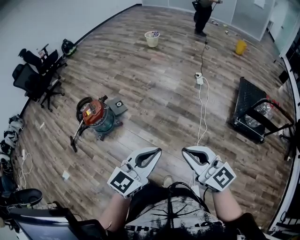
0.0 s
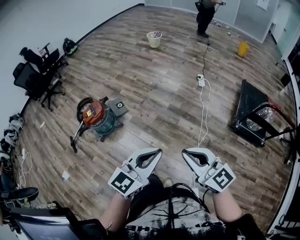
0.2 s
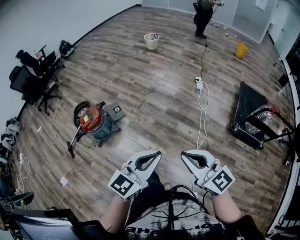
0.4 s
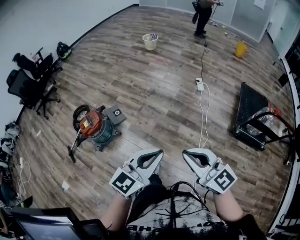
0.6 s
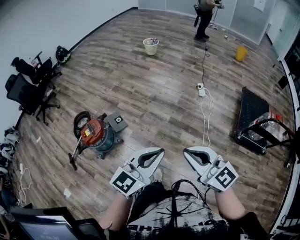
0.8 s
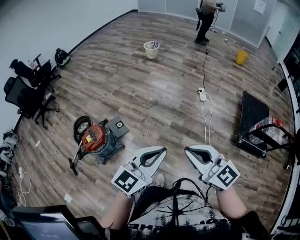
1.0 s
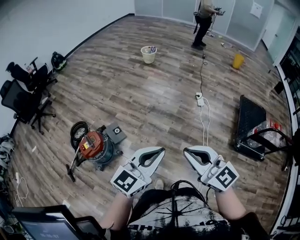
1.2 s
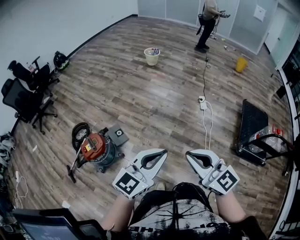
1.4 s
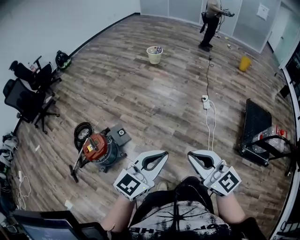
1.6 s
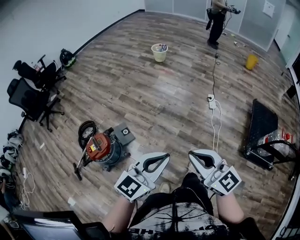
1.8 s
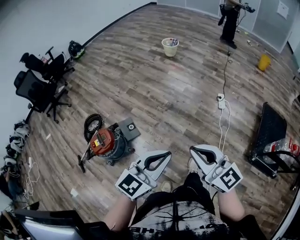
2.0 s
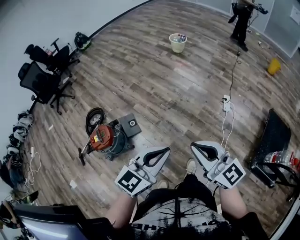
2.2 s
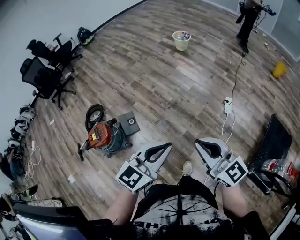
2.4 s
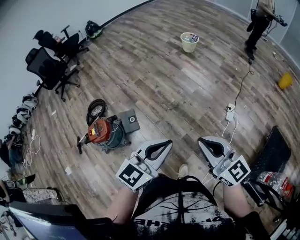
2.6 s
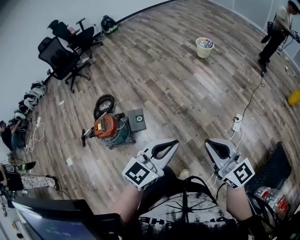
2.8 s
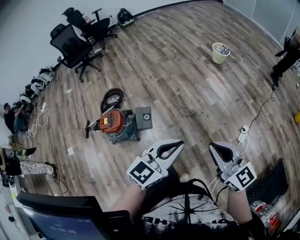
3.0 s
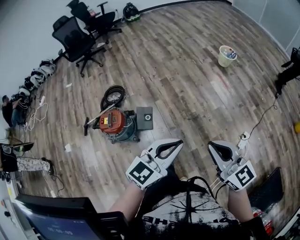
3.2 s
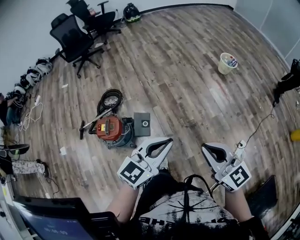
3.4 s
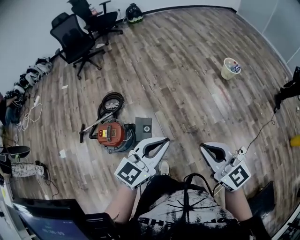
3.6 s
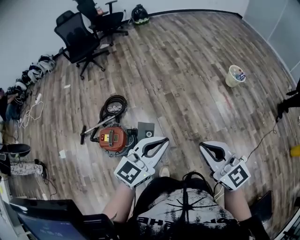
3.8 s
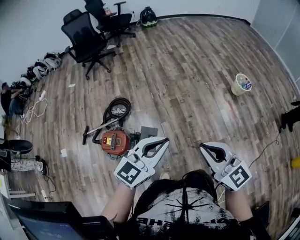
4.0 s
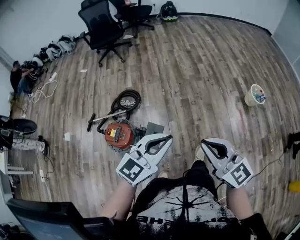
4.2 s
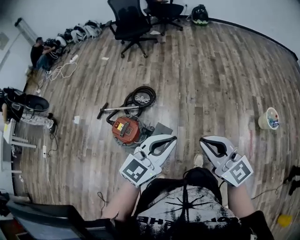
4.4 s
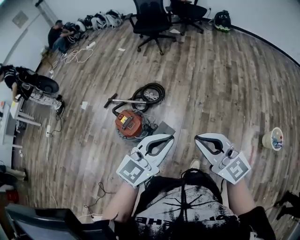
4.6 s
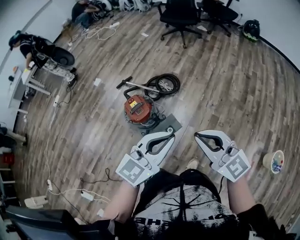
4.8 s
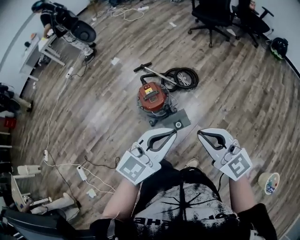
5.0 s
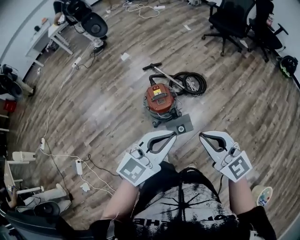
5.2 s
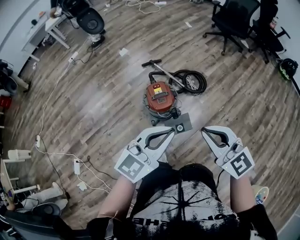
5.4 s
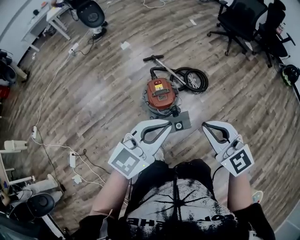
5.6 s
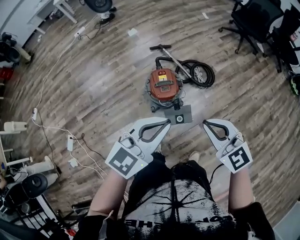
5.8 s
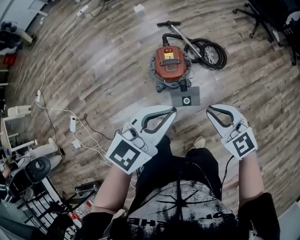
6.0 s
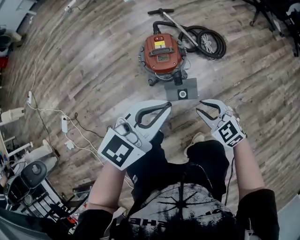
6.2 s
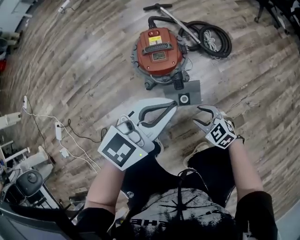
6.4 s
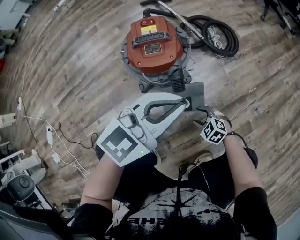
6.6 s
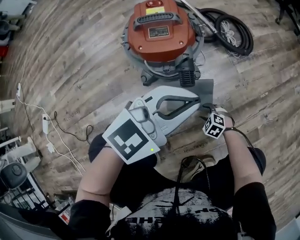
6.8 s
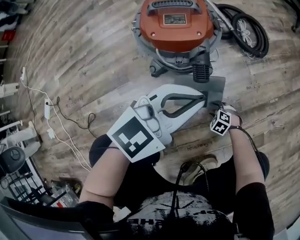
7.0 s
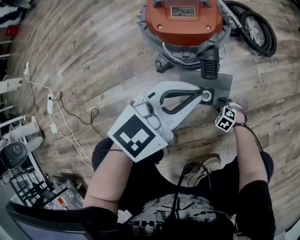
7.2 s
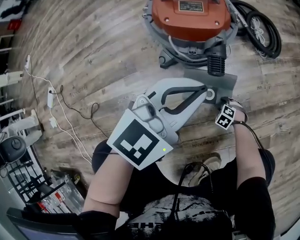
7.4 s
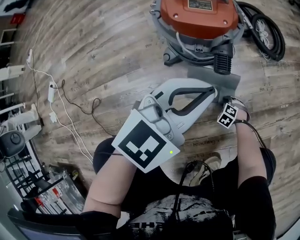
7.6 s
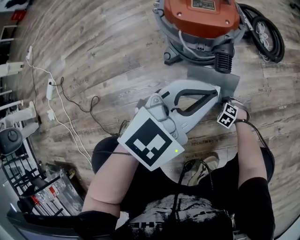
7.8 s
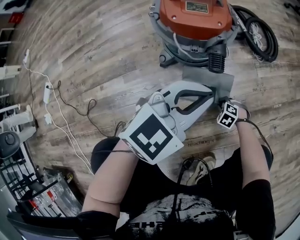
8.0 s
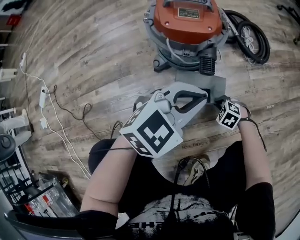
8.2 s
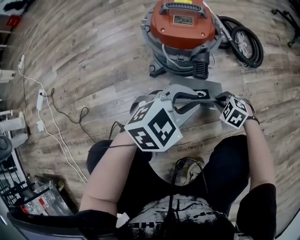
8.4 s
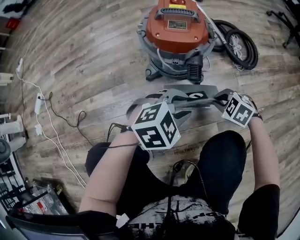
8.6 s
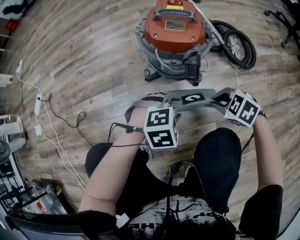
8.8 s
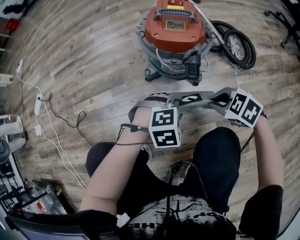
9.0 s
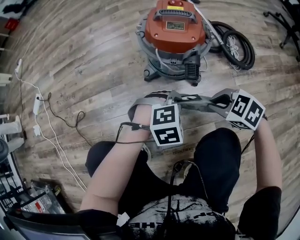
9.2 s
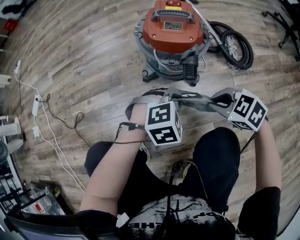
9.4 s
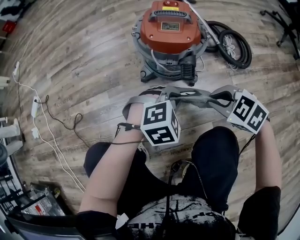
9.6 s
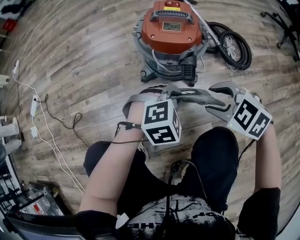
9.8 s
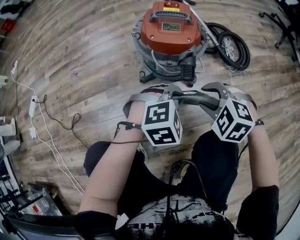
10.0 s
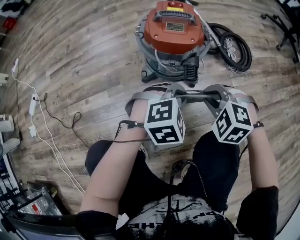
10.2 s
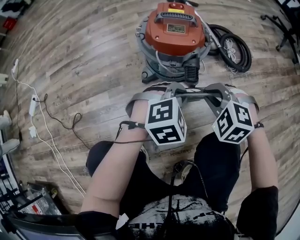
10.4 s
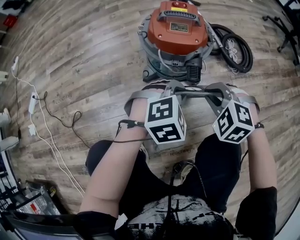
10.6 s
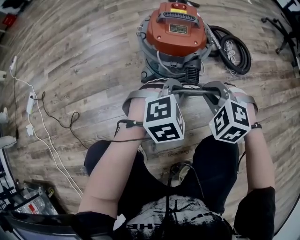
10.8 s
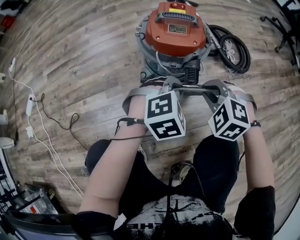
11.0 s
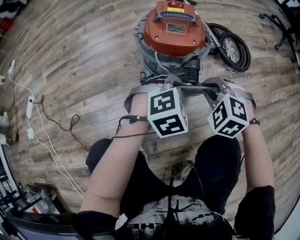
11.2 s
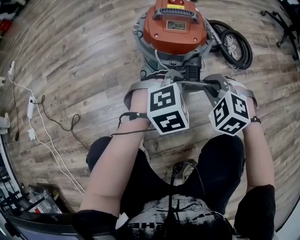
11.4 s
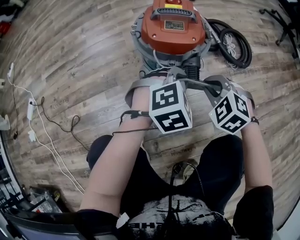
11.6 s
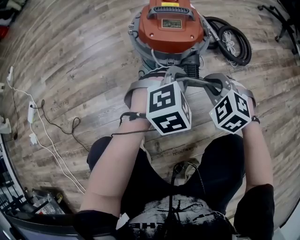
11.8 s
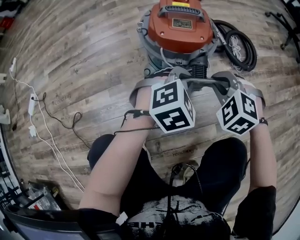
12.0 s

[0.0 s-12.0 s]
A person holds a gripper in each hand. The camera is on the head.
0.0 to 1.6 s: Both grippers travel together forward, about 30 cm.
1.6 to 3.0 s: The left gripper shifts by approximately 30 cm, and turns by about 30 degrees. The right gripper moves roughly 35 cm, and rotates approximately 30 degrees.
3.0 to 4.4 s: Both grippers are carried some 50 cm. The left gripper rotates roughly 30 degrees. The right gripper changes its angle by roughly 40 degrees.
4.4 to 6.0 s: The right gripper ends up roughly 30 cm from where it was, and tilts its fingers approximately 30 degrees downward. Meanwhile the left gripper moves roughly 20 cm, and turns by roughly 60 degrees.
6.0 to 7.6 s: The left gripper heads downward, covering about 50 cm. Meanwhile the right gripper is displaced downward by about 90 cm, tips its fingers downward by some 50 degrees, and opens and closes again.
7.6 to 9.0 s: The left gripper heads downward, covering approximately 15 cm, tilts its fingers roughly 40 degrees downward, and opens up; the right gripper goes some 35 cm upward, turns by roughly 30 degrees, and closes up.
9.0 to 10.4 s: The two grippers go about 5 cm upward. The left gripper closes up; the right gripper changes its angle by some 30 degrees, and opens and closes again.
10.4 to 12.0 s: The grippers both shift forward by approximately 5 cm.

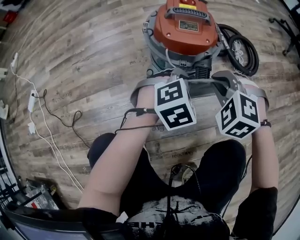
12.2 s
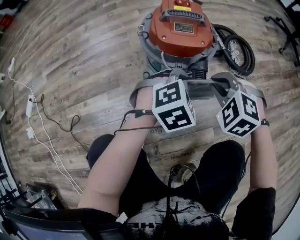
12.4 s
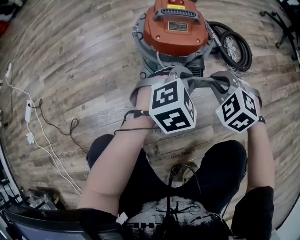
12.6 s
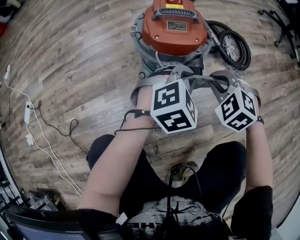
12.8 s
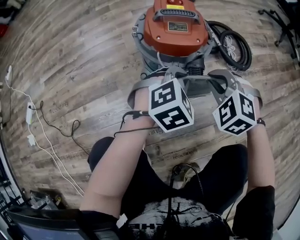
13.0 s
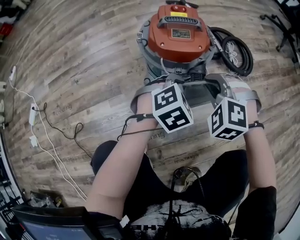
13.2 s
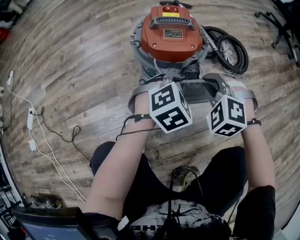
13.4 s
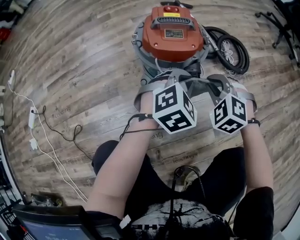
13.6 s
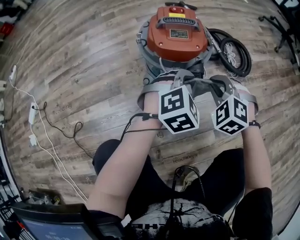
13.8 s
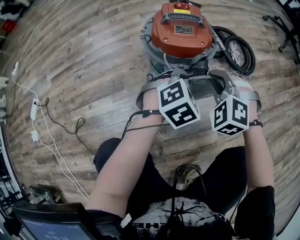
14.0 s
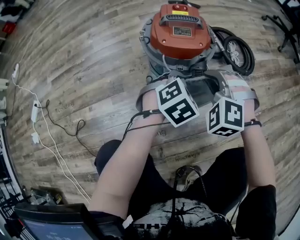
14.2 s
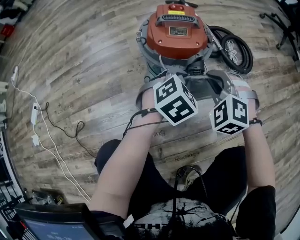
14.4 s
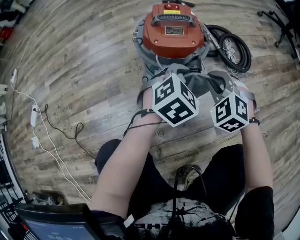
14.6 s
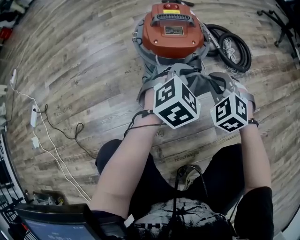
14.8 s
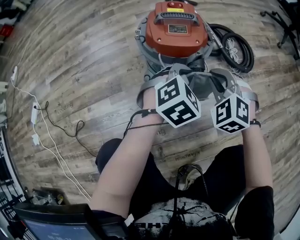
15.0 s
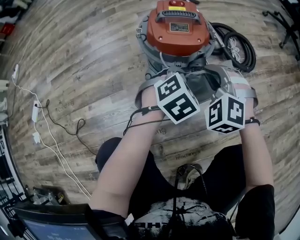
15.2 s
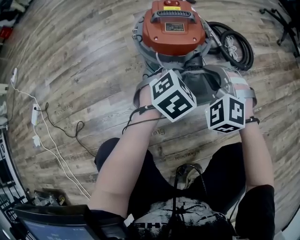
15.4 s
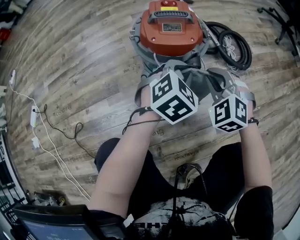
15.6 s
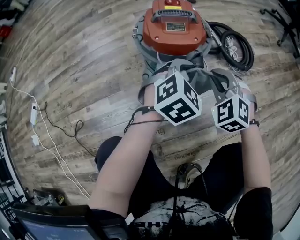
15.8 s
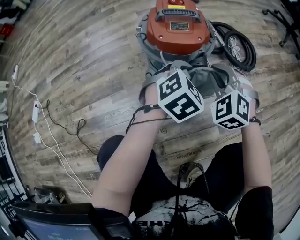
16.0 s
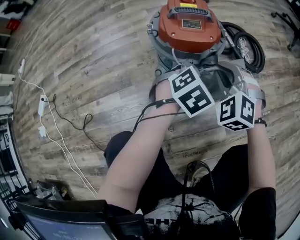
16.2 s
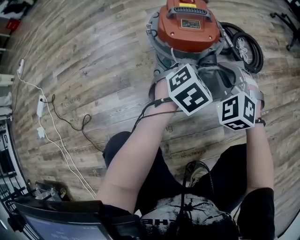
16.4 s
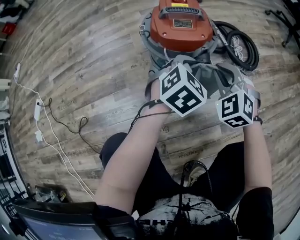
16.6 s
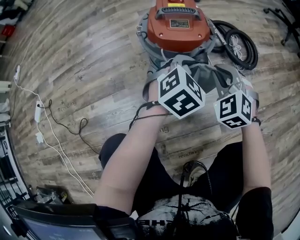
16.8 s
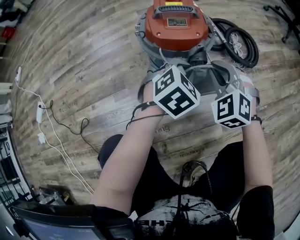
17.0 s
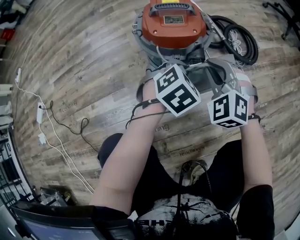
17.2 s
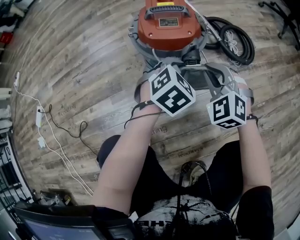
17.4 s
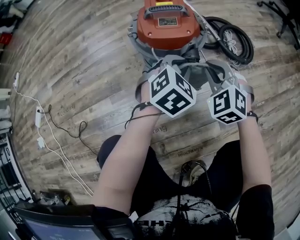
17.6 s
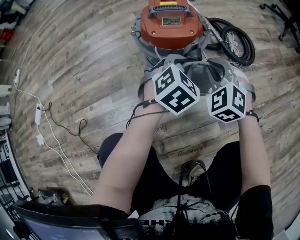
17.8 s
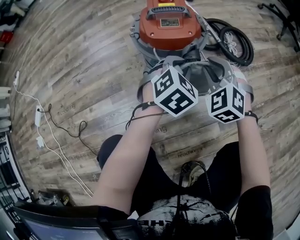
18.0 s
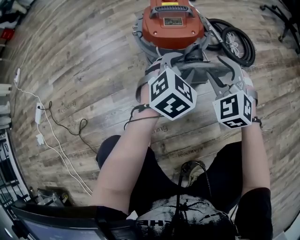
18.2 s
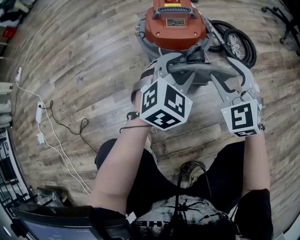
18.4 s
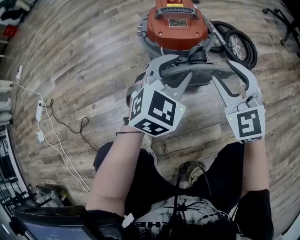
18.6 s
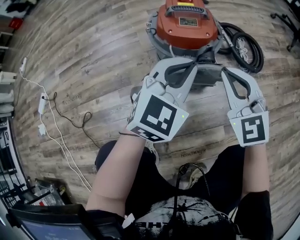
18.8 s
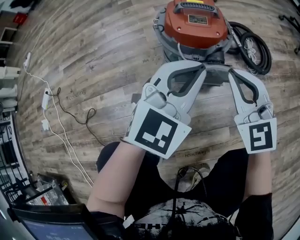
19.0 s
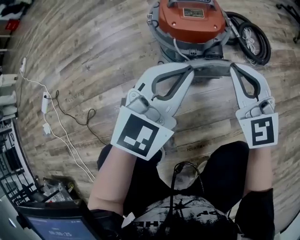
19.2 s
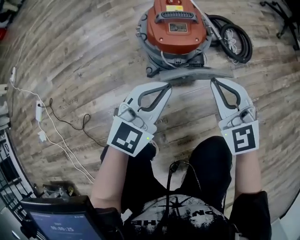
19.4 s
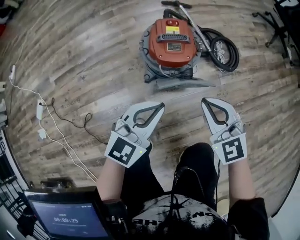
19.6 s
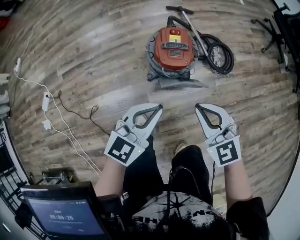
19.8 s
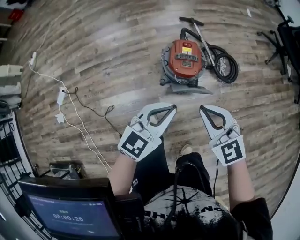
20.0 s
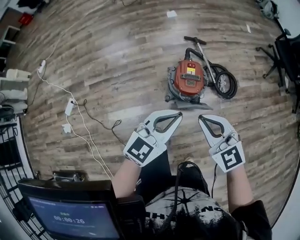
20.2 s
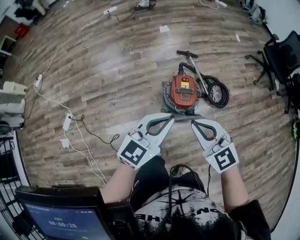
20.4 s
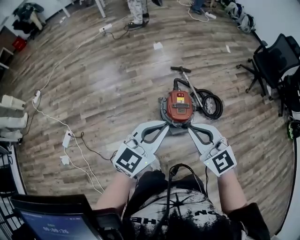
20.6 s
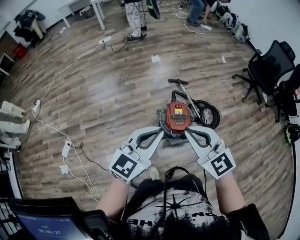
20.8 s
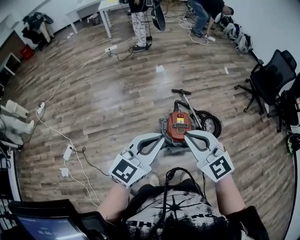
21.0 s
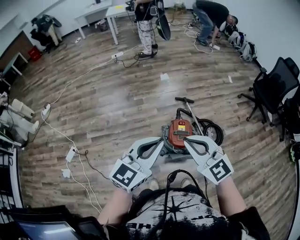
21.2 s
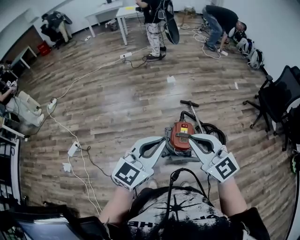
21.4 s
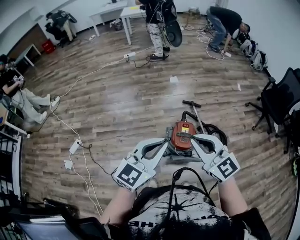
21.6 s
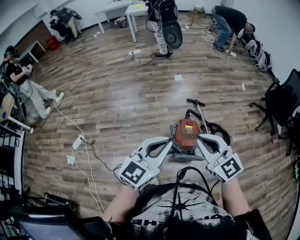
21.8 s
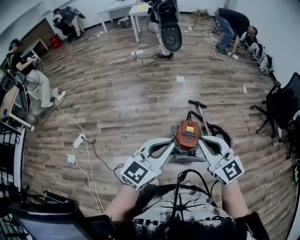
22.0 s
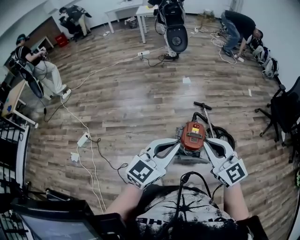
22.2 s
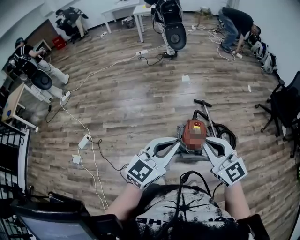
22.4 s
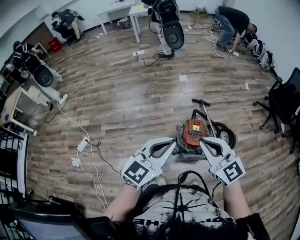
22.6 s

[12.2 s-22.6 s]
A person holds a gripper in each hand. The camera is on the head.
12.2 to 13.6 s: The left gripper ends up approximately 5 cm from where it was.
13.6 to 15.2 s: The left gripper moves up and down over some 5 cm, changing direction 2 times. Meanwhile the right gripper swings left and right, roughly 5 cm each way, with 2 reversals.
15.2 to 16.6 s: The grippers move only a little.
16.6 to 18.2 s: The right gripper opens up, while the left gripper opens.
18.2 to 19.6 s: The right gripper goes some 20 cm upward and backward, swivels some 20 degrees, and closes up. Meanwhile the left gripper goes approximately 25 cm upward, backward and to the left, changes its angle by roughly 30 degrees, and closes its fingers.
19.6 to 21.2 s: Both grippers travel together upward, approximately 50 cm. The left gripper swivels some 20 degrees. The right gripper turns by some 30 degrees.
21.2 to 22.6 s: The grippers move only a little.

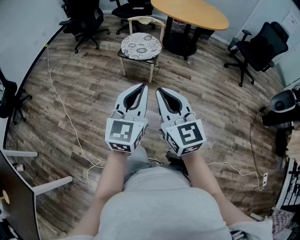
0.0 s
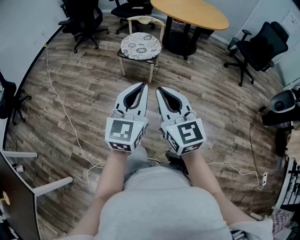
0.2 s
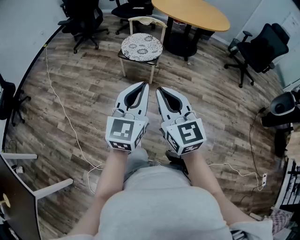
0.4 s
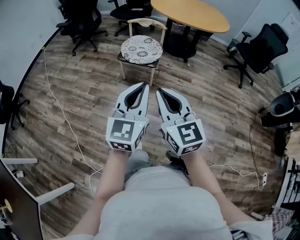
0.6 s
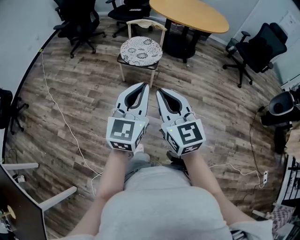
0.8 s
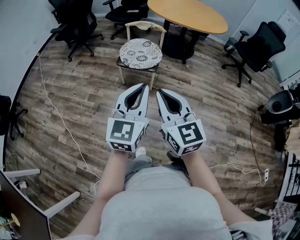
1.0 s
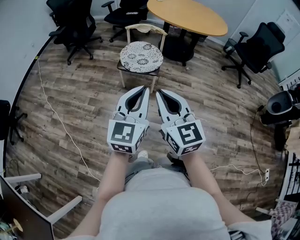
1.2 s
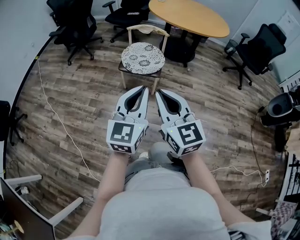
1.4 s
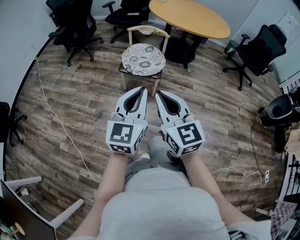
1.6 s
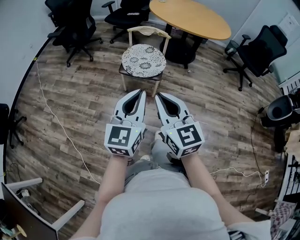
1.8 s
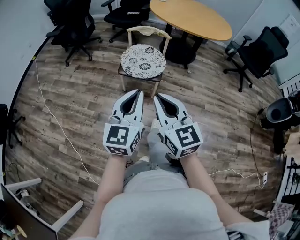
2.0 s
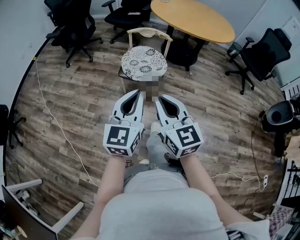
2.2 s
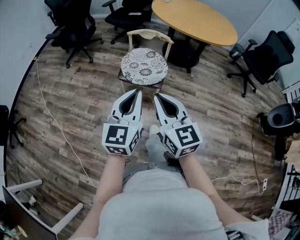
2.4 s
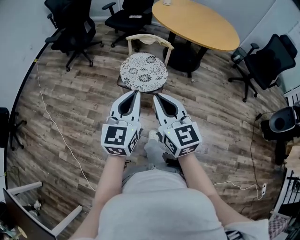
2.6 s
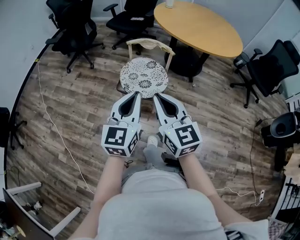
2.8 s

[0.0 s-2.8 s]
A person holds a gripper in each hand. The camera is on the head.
0.0 to 1.4 s: Both grippers move forward and to the left, approximately 20 cm.
1.4 to 2.8 s: Both grippers travel together forward, some 25 cm.
